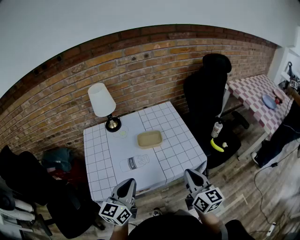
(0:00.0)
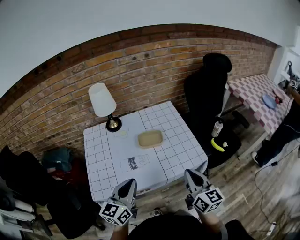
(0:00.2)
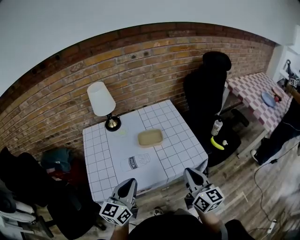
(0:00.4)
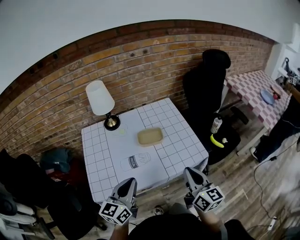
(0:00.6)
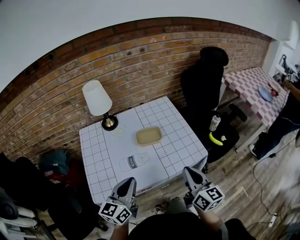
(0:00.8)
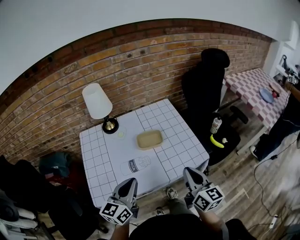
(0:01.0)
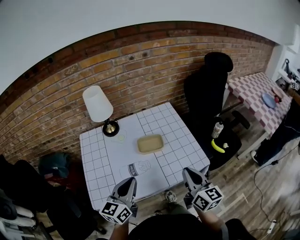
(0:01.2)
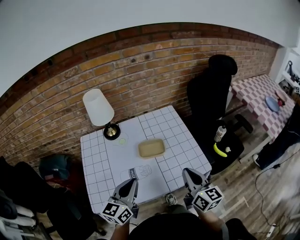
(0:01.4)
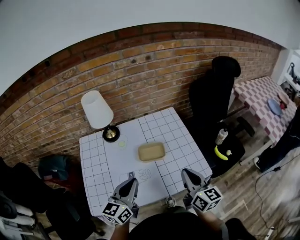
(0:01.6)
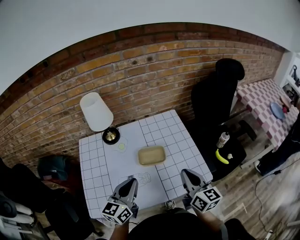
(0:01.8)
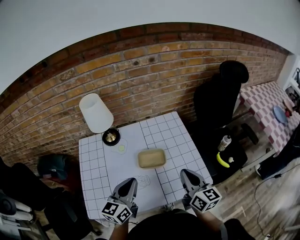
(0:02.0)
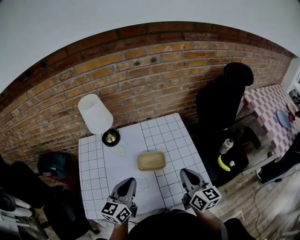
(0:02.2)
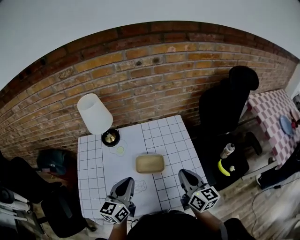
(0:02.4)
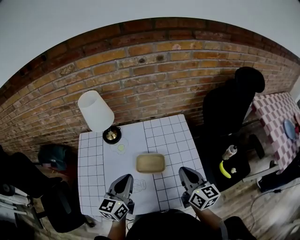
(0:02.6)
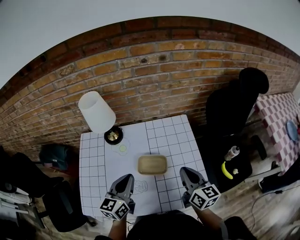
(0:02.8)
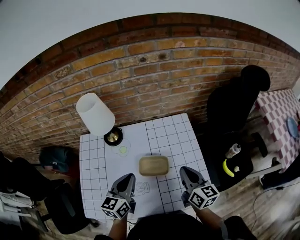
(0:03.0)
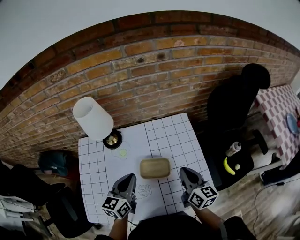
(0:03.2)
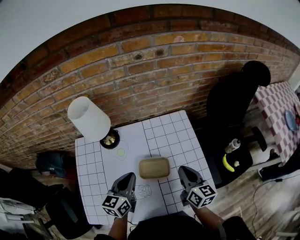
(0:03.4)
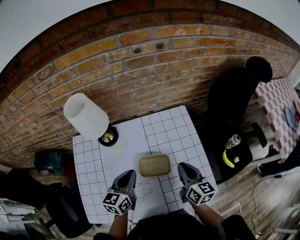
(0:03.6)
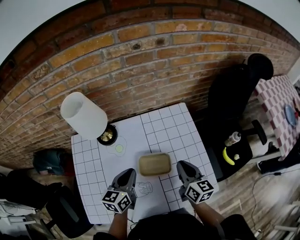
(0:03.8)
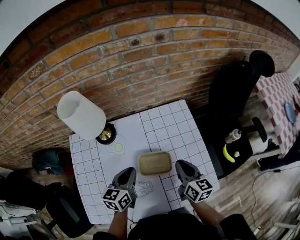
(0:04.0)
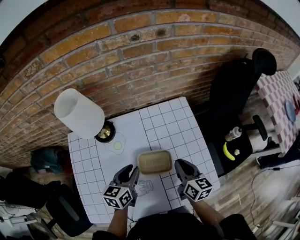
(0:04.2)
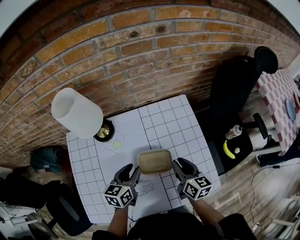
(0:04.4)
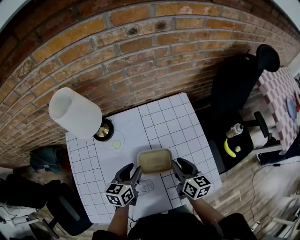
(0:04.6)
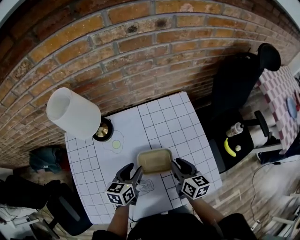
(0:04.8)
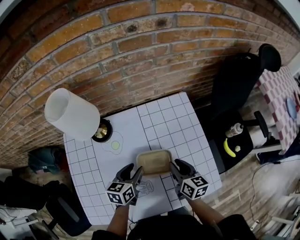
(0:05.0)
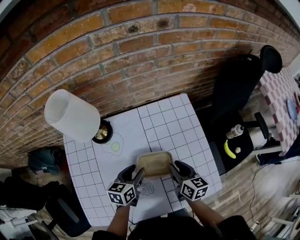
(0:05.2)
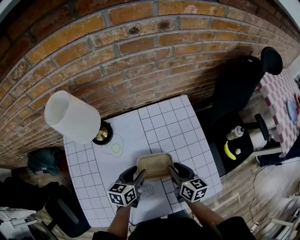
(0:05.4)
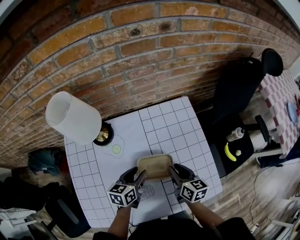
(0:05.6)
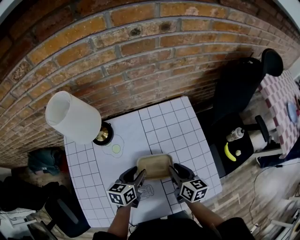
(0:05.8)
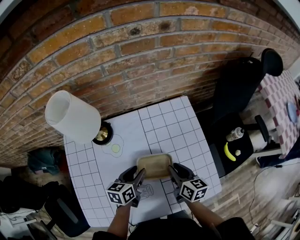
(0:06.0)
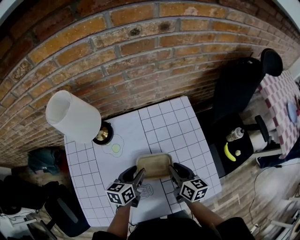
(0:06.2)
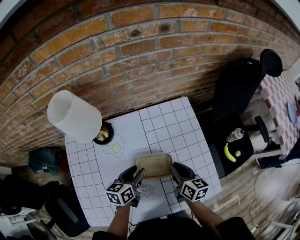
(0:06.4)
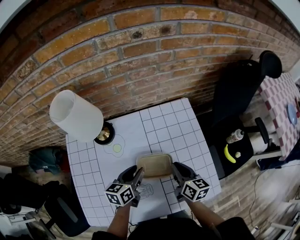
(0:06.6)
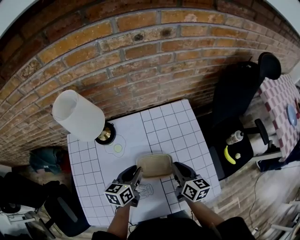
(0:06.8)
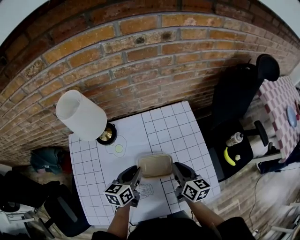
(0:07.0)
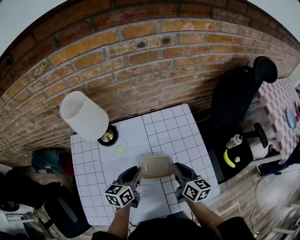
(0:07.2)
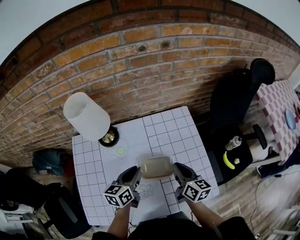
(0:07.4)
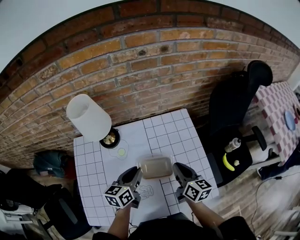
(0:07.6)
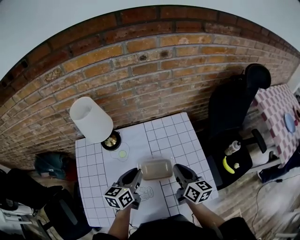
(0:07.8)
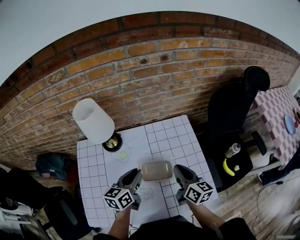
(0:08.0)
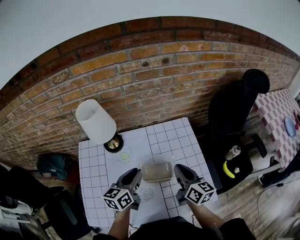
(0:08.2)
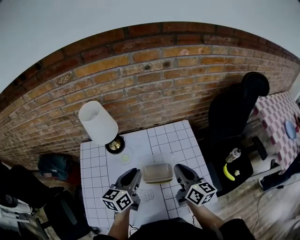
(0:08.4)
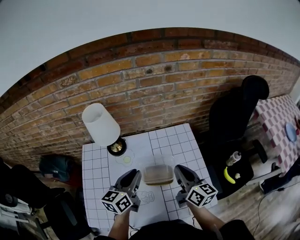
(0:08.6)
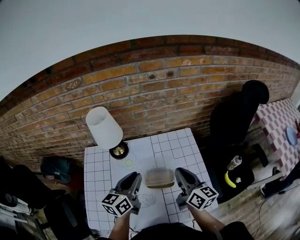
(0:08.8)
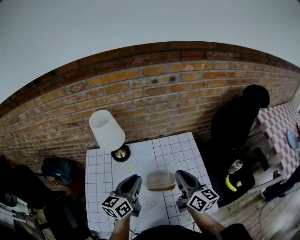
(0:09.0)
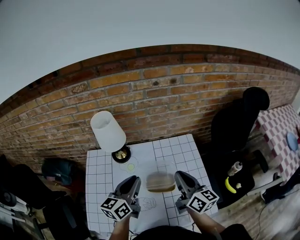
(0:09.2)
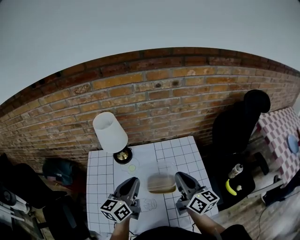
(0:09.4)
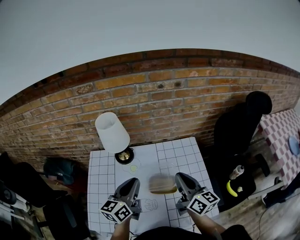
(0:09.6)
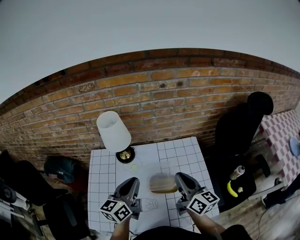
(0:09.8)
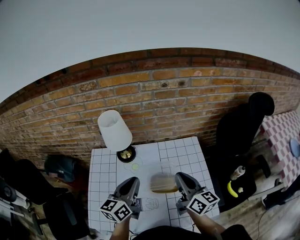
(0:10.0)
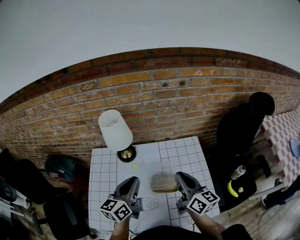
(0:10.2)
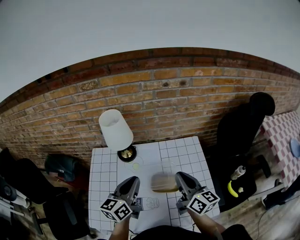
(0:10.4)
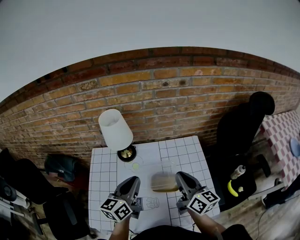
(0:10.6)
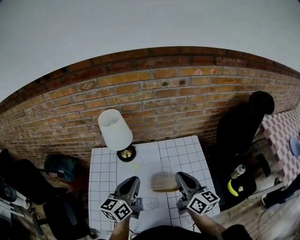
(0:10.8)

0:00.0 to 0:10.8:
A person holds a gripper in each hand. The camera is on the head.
0:00.0 to 0:01.6: The two grippers go some 10 cm forward.
0:01.6 to 0:03.0: The grippers both shift forward by roughly 15 cm.
0:03.0 to 0:04.6: The right gripper heads downward, covering approximately 10 cm, and opens, while the left gripper shifts about 15 cm downward and forward, changes its angle by some 20 degrees, and opens up.
0:04.6 to 0:06.2: The grippers move only a little.
0:06.2 to 0:07.8: Both grippers move upward, roughly 10 cm. The left gripper closes up.
0:07.8 to 0:09.2: Both grippers move upward, some 10 cm.
0:09.2 to 0:10.8: The grippers make only small movements.

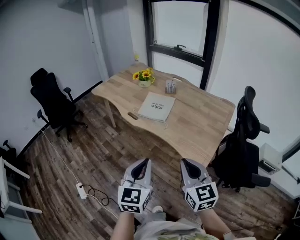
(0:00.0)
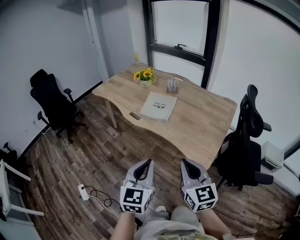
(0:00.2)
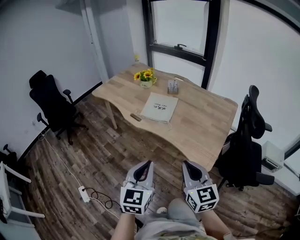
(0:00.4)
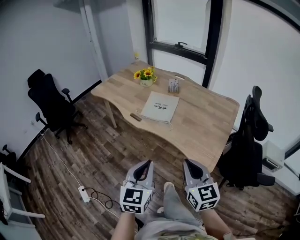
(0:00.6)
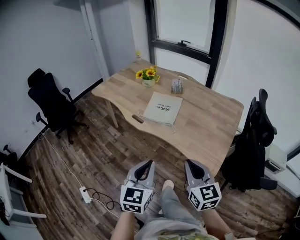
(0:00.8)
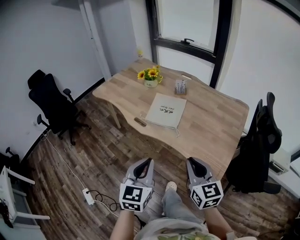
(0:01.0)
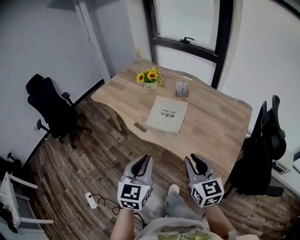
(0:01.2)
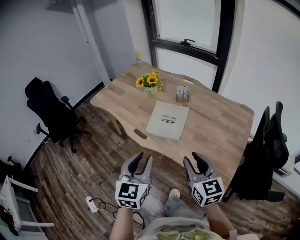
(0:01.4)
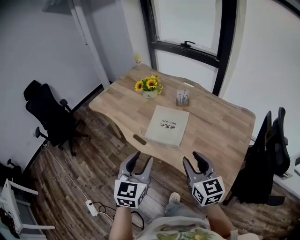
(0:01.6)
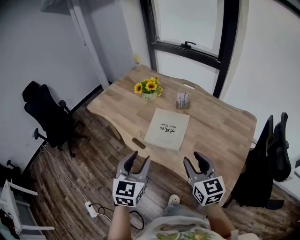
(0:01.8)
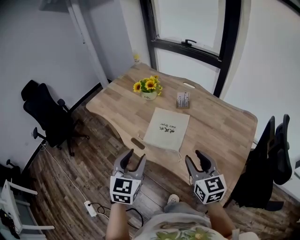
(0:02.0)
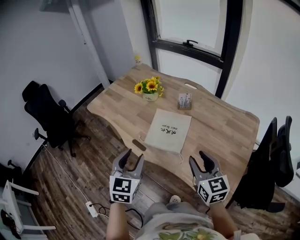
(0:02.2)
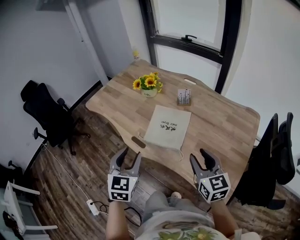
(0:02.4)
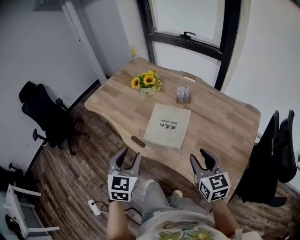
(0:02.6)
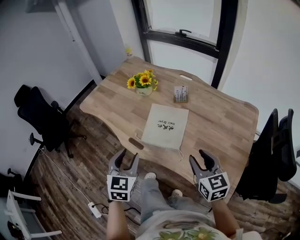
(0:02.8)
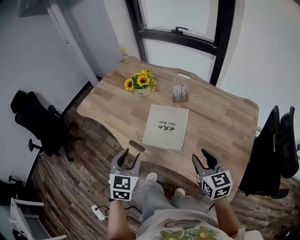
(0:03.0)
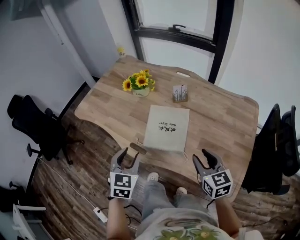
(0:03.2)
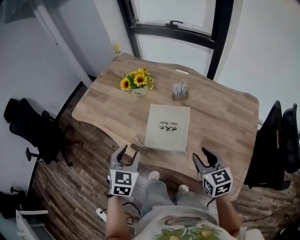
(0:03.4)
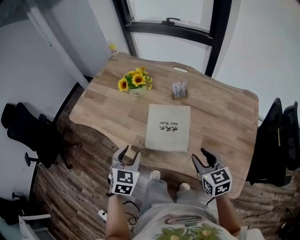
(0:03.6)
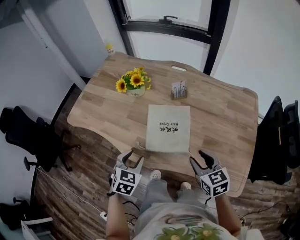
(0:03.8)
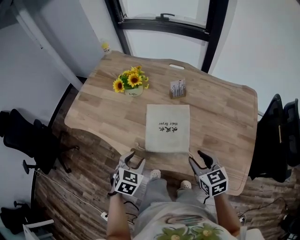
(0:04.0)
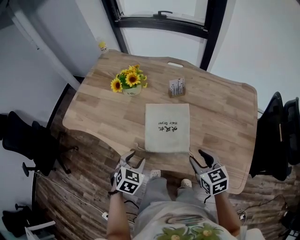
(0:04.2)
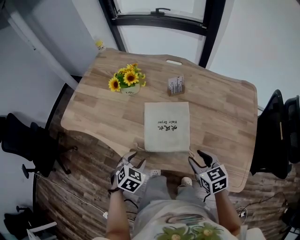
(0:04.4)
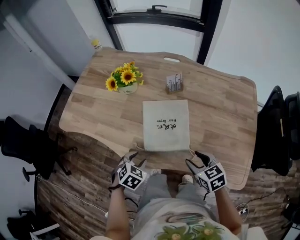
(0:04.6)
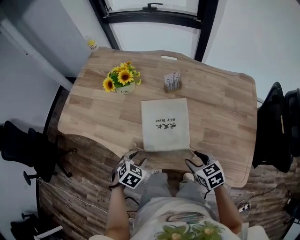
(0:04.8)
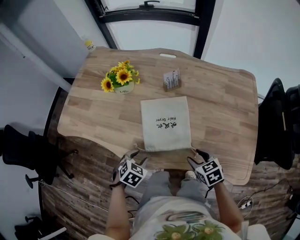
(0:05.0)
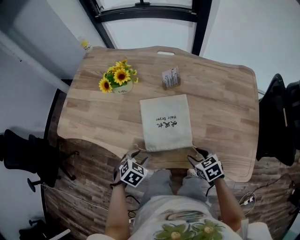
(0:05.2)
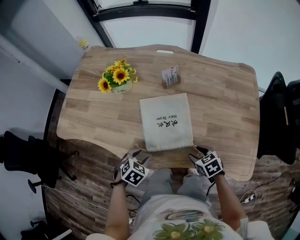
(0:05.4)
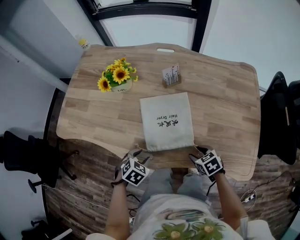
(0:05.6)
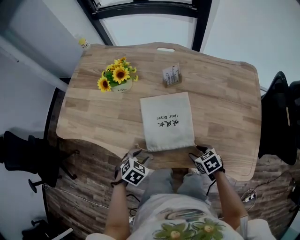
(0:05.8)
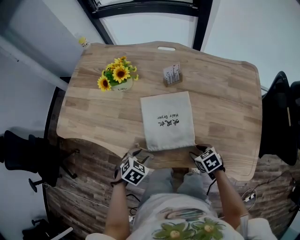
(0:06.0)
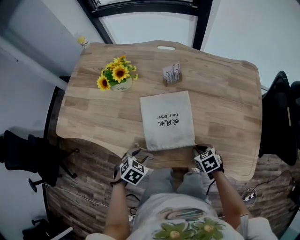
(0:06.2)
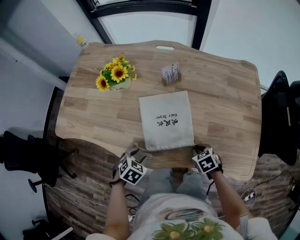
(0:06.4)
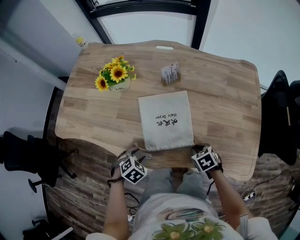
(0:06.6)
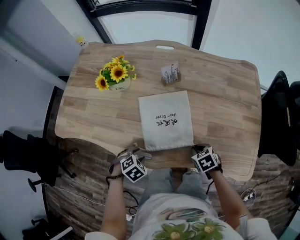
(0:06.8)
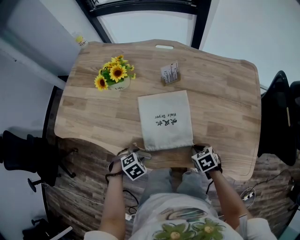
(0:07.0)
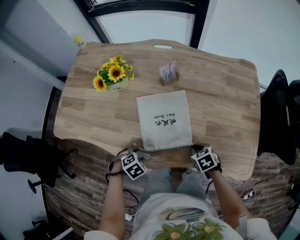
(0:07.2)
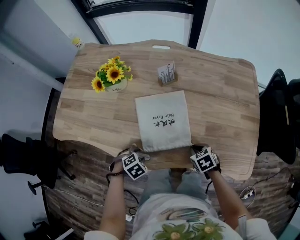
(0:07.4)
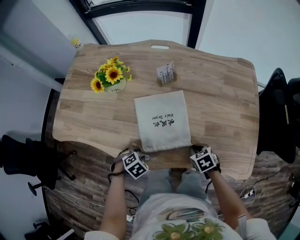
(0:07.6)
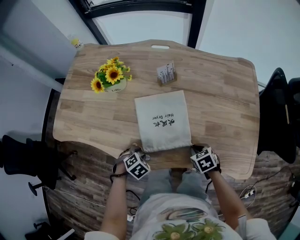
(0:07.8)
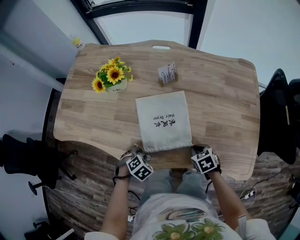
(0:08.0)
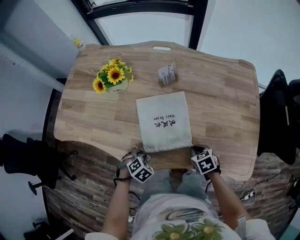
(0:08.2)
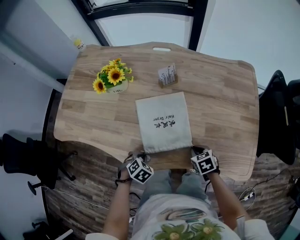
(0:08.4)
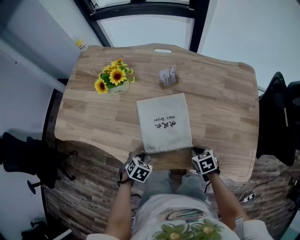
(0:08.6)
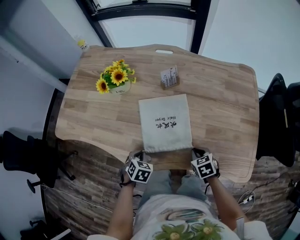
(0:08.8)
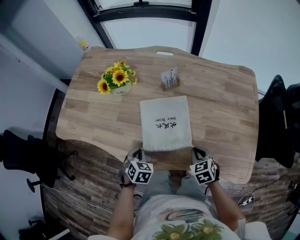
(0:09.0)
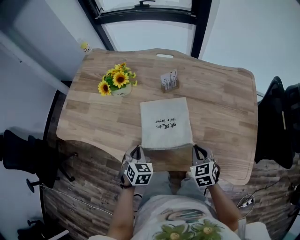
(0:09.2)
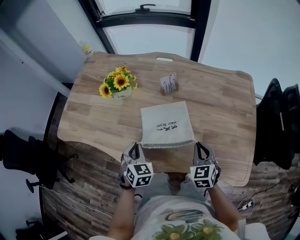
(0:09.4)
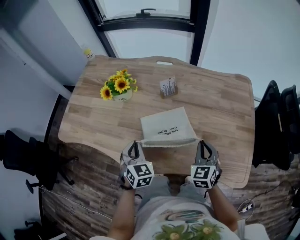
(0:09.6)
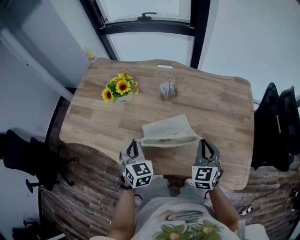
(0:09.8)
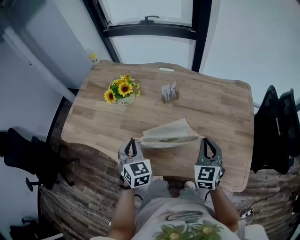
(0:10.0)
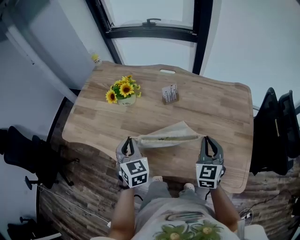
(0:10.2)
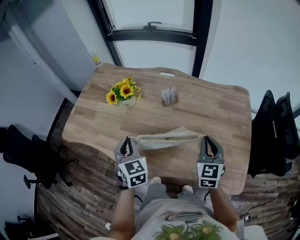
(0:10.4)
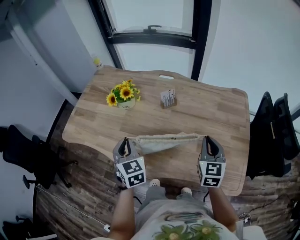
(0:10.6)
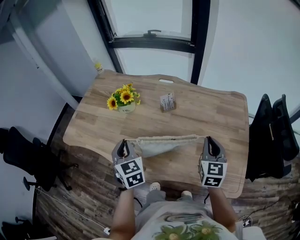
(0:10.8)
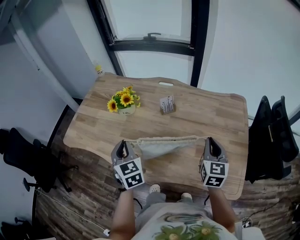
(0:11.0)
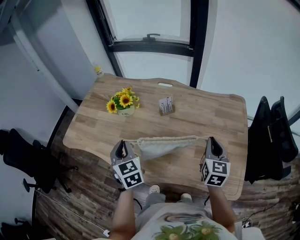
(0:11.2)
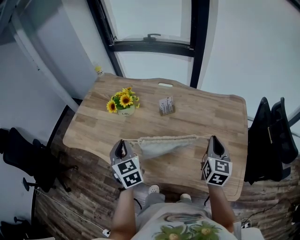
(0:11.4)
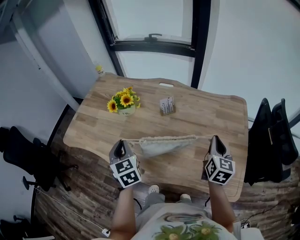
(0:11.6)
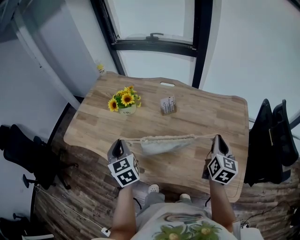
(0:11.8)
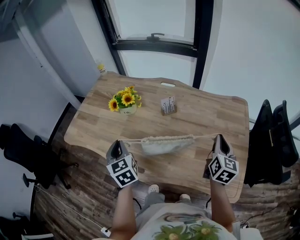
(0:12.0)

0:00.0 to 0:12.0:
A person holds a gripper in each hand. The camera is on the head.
0:00.0 to 0:01.6: The grippers both shift forward by some 30 cm. The right gripper opens. Meanwhile the left gripper opens.
0:01.6 to 0:03.0: The left gripper heads forward, downward and to the left, covering about 15 cm. The right gripper heads forward and downward, covering some 10 cm.
0:03.0 to 0:04.4: The right gripper travels downward and to the left by approximately 10 cm. The left gripper heads downward and forward, covering some 20 cm, and turns by about 40 degrees.
0:04.4 to 0:06.0: The right gripper goes approximately 15 cm downward, and rotates roughly 30 degrees. Meanwhile the left gripper travels downward by about 5 cm.
0:06.0 to 0:07.6: The left gripper heads downward, covering roughly 5 cm, and swivels about 20 degrees, while the right gripper closes.
0:07.6 to 0:09.0: The two grippers go roughly 5 cm upward. The left gripper changes its angle by about 40 degrees, and closes.
0:09.0 to 0:10.4: Both grippers move upward, about 20 cm. The right gripper tips its fingers upward by about 30 degrees. The left gripper tips its fingers upward by roughly 30 degrees.
0:10.4 to 0:12.0: The left gripper changes its angle by about 20 degrees, while the right gripper travels to the right by about 10 cm, and changes its angle by about 30 degrees.

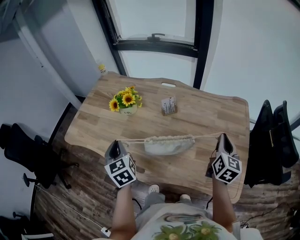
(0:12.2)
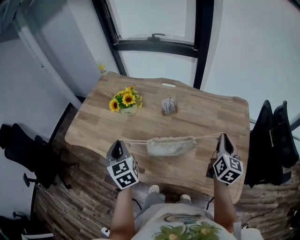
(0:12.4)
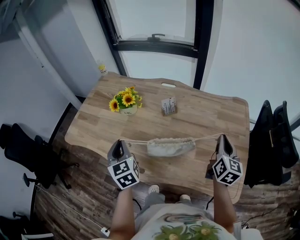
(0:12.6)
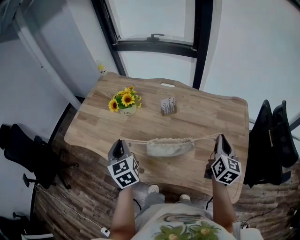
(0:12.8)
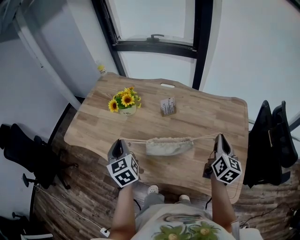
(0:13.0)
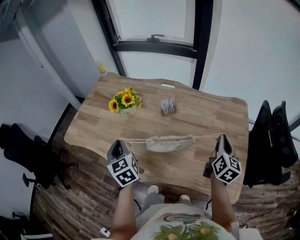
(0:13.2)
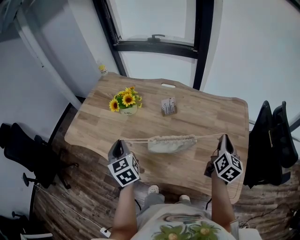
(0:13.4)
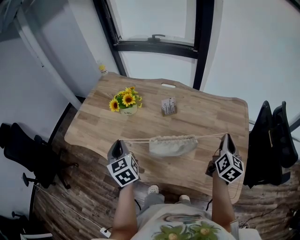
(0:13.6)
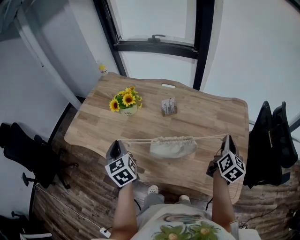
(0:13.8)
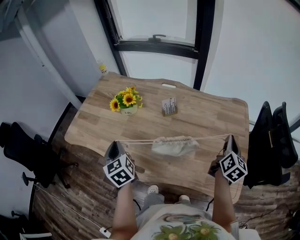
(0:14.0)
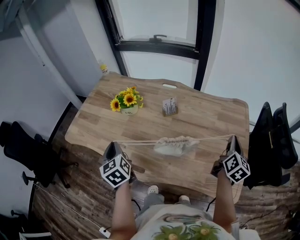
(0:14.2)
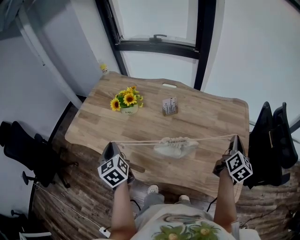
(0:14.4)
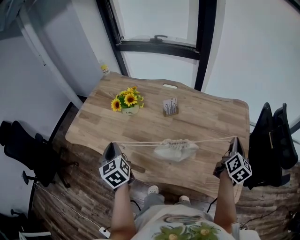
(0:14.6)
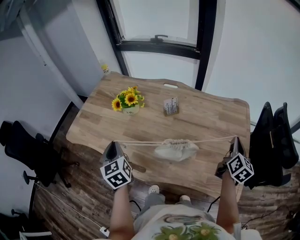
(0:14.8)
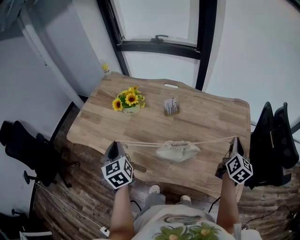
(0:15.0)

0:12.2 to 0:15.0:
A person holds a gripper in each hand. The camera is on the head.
0:12.2 to 0:13.6: The grippers move only a little.
0:13.6 to 0:15.0: The grippers make only small movements.
